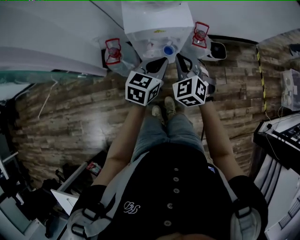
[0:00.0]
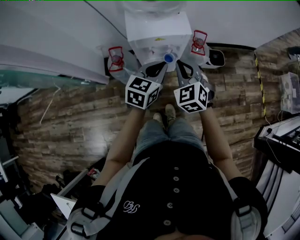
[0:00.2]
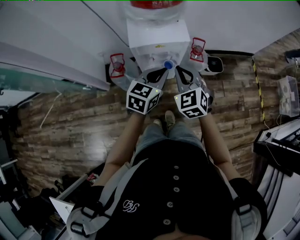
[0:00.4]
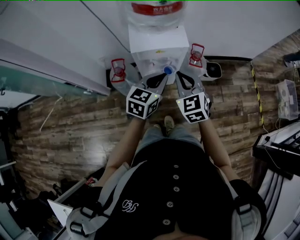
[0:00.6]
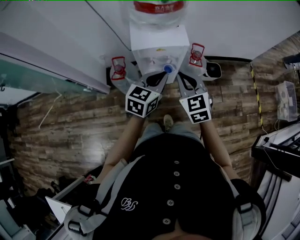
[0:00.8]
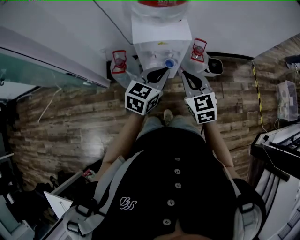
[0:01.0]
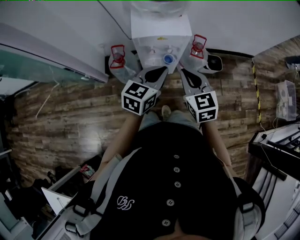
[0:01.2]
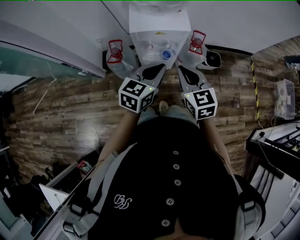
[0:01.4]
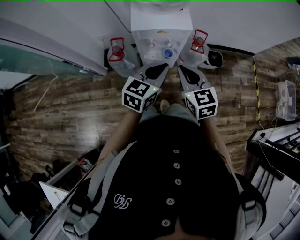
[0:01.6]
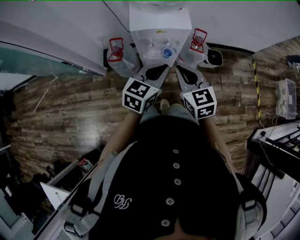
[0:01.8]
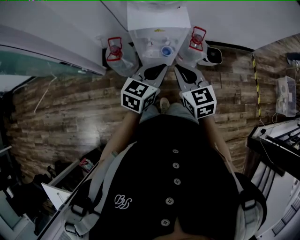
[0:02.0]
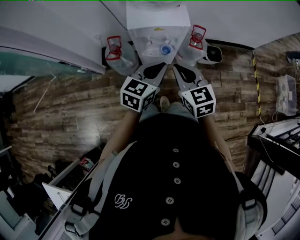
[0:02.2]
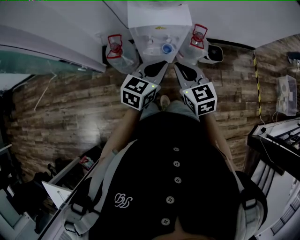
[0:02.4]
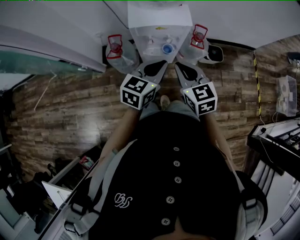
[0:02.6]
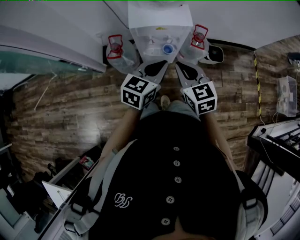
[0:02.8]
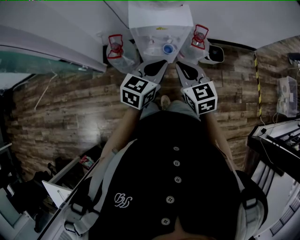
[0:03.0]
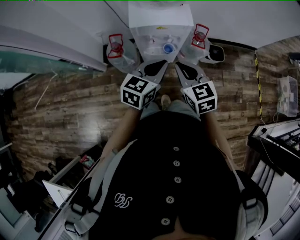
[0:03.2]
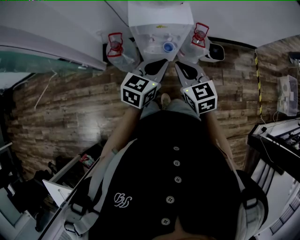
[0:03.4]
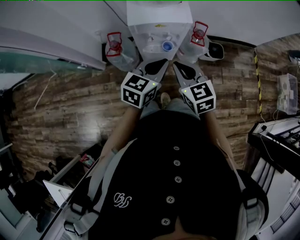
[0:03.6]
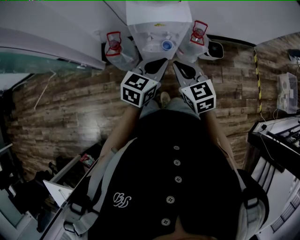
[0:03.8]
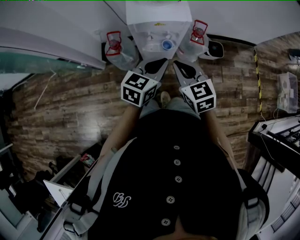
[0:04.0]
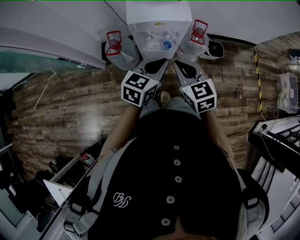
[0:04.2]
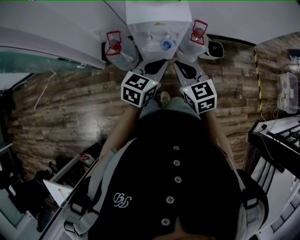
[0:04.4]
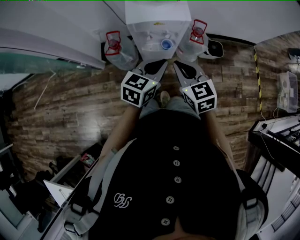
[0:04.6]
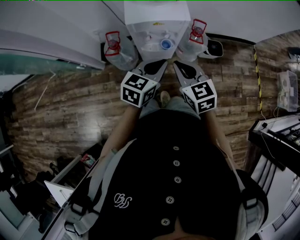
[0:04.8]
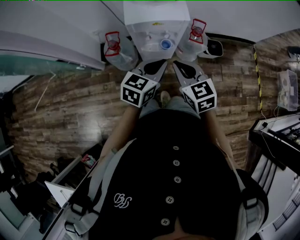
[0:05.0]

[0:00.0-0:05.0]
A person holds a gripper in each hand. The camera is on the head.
0:00.0 to 0:01.6: The left gripper travels upward and backward by about 10 cm. Meanwhile the right gripper moves backward and upward, approximately 10 cm, and swivels approximately 30 degrees.
0:01.6 to 0:05.0: The grippers stay close to where they were, moving slightly.

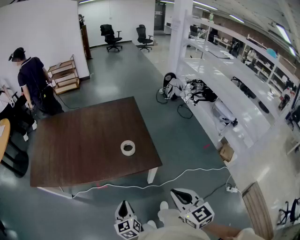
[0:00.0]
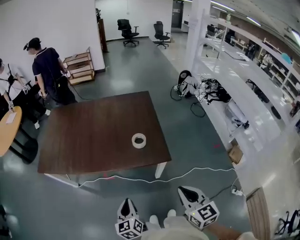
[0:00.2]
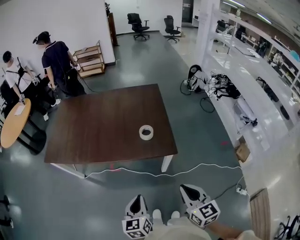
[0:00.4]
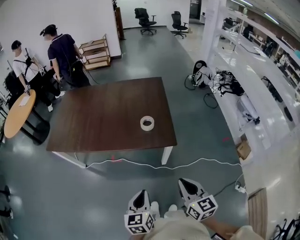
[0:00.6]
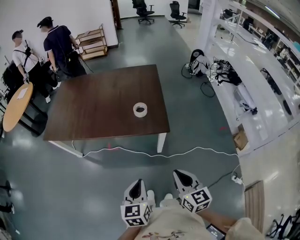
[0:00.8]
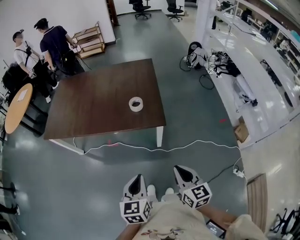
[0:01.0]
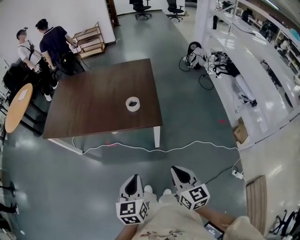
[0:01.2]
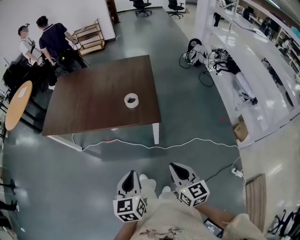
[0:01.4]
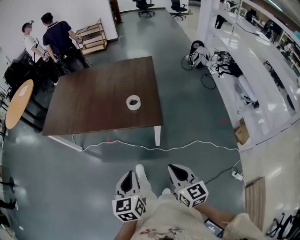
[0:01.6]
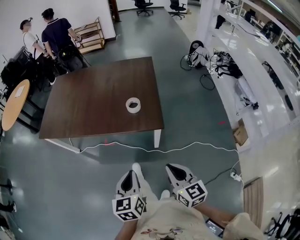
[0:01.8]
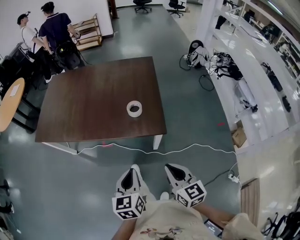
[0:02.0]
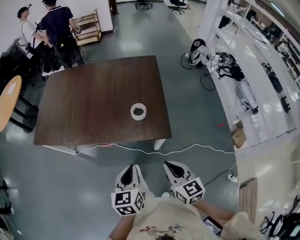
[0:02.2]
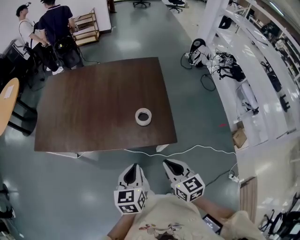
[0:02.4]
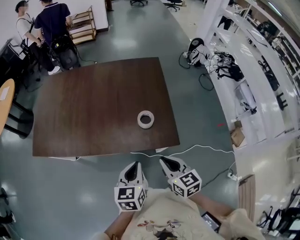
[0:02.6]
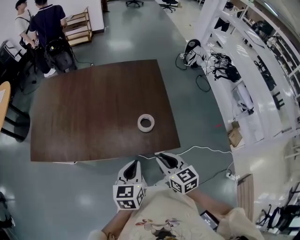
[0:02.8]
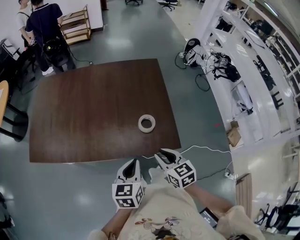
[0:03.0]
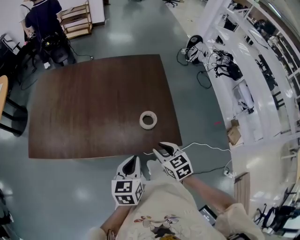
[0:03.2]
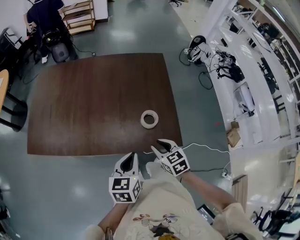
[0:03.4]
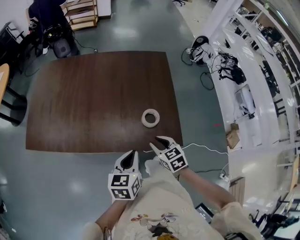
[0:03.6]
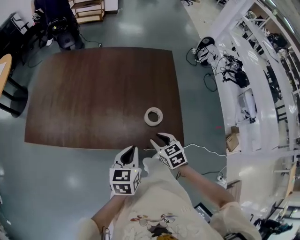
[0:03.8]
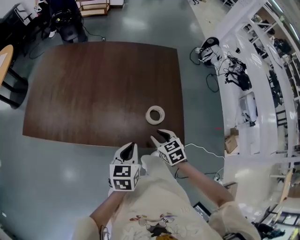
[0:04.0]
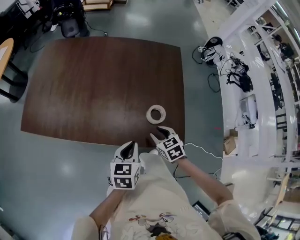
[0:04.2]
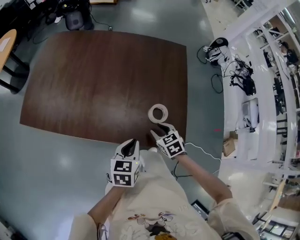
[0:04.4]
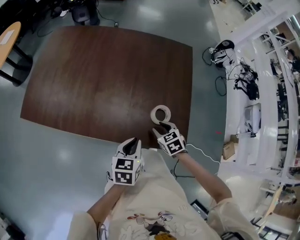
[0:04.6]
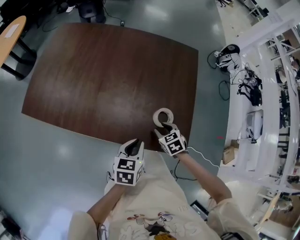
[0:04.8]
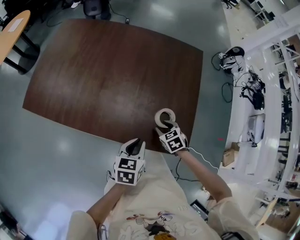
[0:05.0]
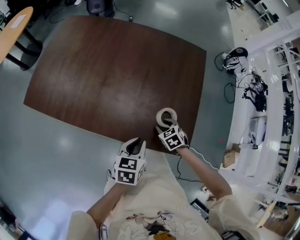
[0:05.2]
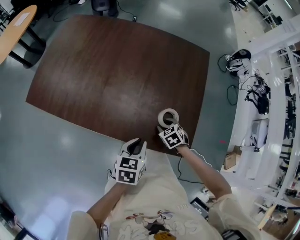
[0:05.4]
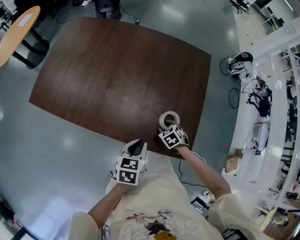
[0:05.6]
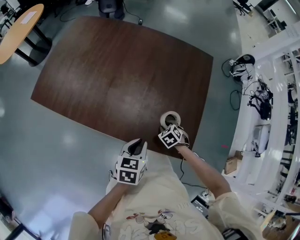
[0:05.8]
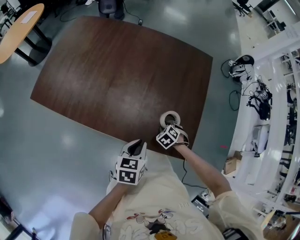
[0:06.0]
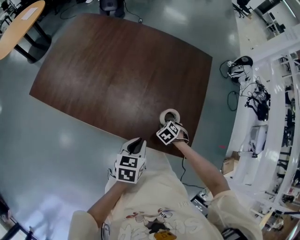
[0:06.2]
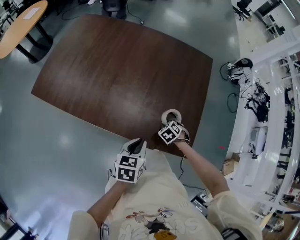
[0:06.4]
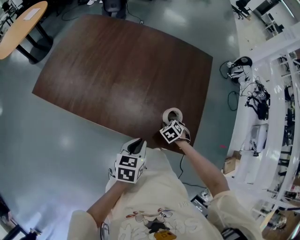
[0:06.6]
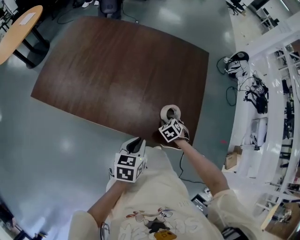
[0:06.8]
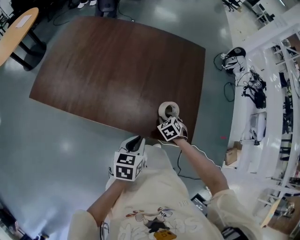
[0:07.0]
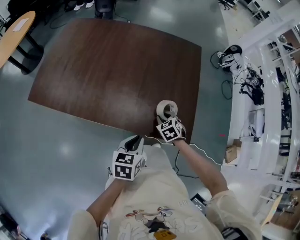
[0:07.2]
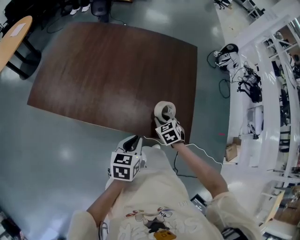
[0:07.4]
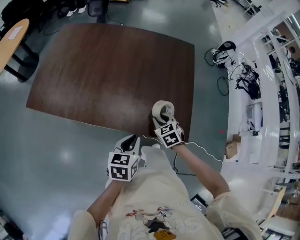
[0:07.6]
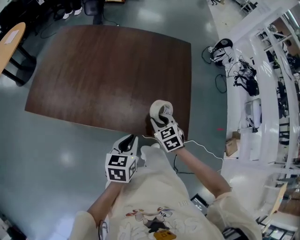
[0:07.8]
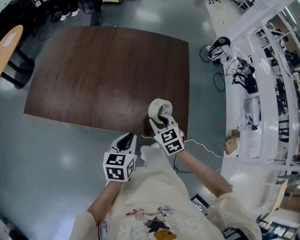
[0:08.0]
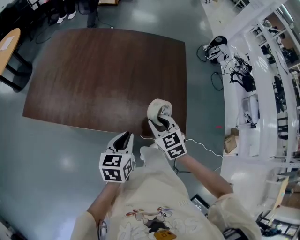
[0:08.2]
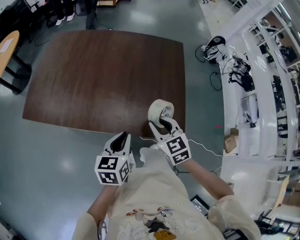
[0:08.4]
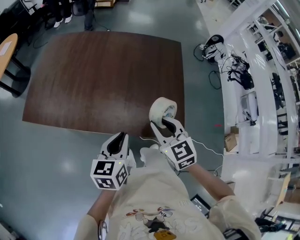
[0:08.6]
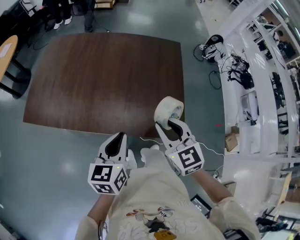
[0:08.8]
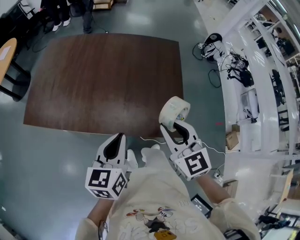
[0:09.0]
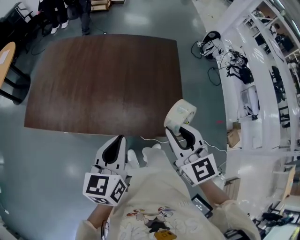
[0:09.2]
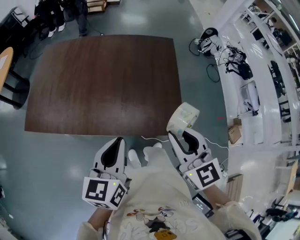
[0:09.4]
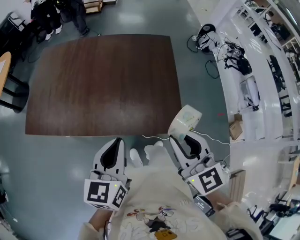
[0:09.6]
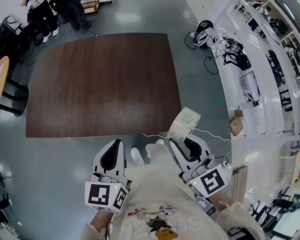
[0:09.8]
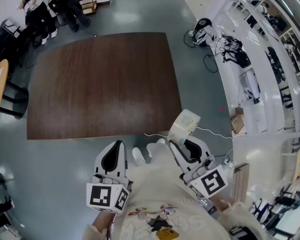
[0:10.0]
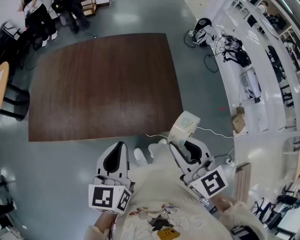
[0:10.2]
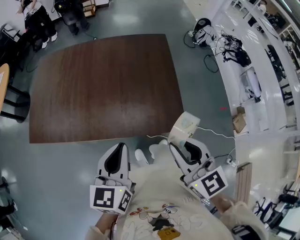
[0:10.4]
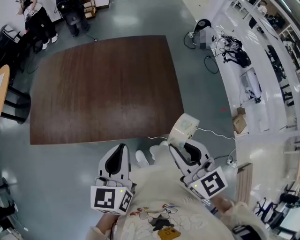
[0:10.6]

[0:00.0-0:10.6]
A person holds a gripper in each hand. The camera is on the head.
0:00.0 to 0:01.6: The left gripper shifts roughly 20 cm backward, to the right and upward. The right gripper heads backward and to the right, covering about 15 cm.
0:01.6 to 0:03.0: The left gripper goes some 40 cm forward, while the right gripper shifts approximately 40 cm forward and to the left.
0:03.0 to 0:04.6: The right gripper heads downward and forward, covering approximately 25 cm, and swivels roughly 30 degrees, while the left gripper is displaced downward and forward by approximately 15 cm.
0:04.6 to 0:06.0: The right gripper is displaced downward by about 10 cm, and turns by roughly 30 degrees.
0:06.0 to 0:07.6: The right gripper moves upward, about 10 cm, and changes its angle by roughly 30 degrees. Meanwhile the left gripper shifts by roughly 10 cm.
0:07.6 to 0:09.0: The left gripper is displaced upward by about 15 cm. The right gripper shifts roughly 25 cm upward, and tips its fingers upward by approximately 30 degrees.
0:09.0 to 0:10.6: The right gripper goes about 10 cm backward. Meanwhile the left gripper shifts by some 5 cm.

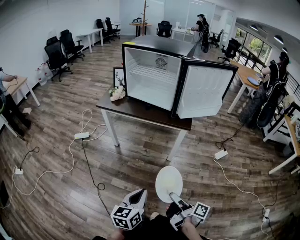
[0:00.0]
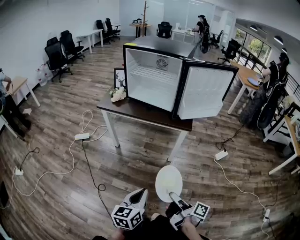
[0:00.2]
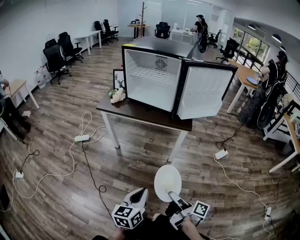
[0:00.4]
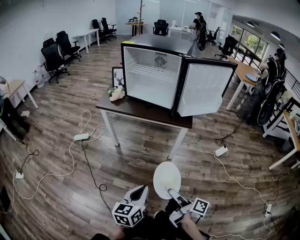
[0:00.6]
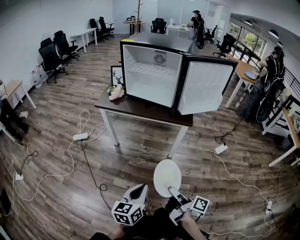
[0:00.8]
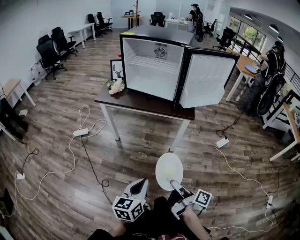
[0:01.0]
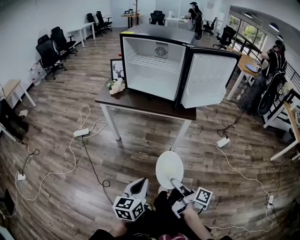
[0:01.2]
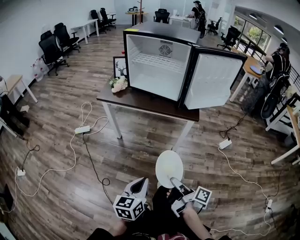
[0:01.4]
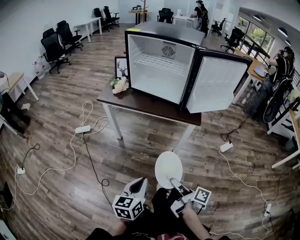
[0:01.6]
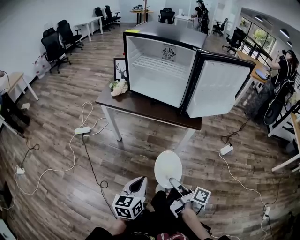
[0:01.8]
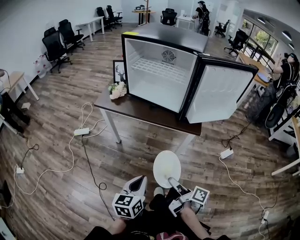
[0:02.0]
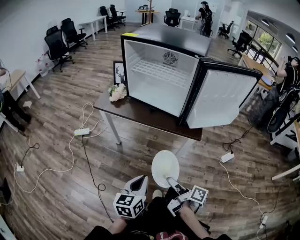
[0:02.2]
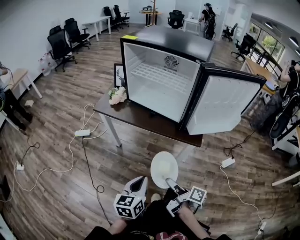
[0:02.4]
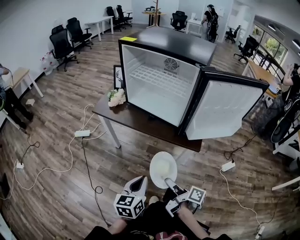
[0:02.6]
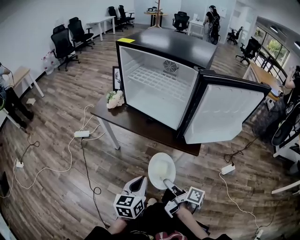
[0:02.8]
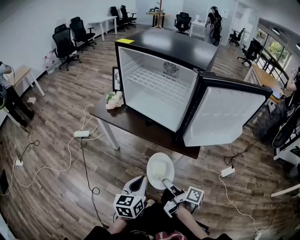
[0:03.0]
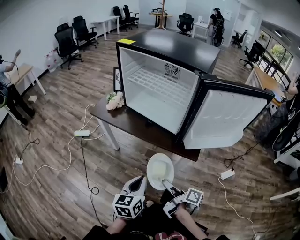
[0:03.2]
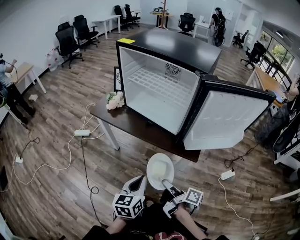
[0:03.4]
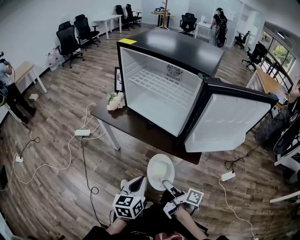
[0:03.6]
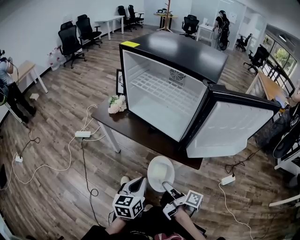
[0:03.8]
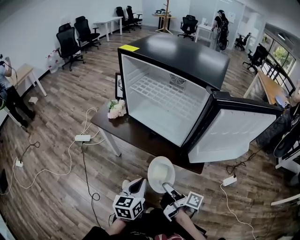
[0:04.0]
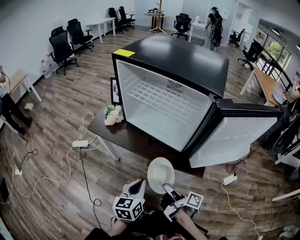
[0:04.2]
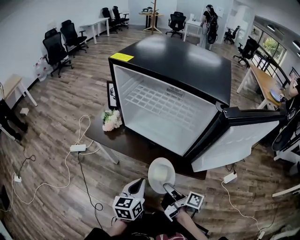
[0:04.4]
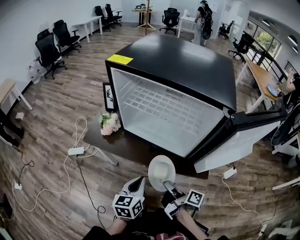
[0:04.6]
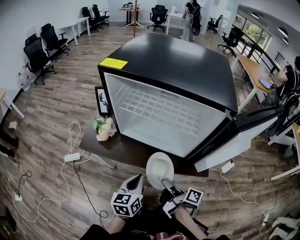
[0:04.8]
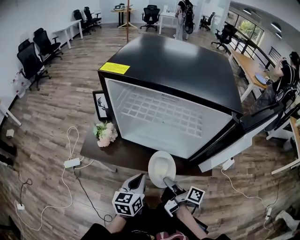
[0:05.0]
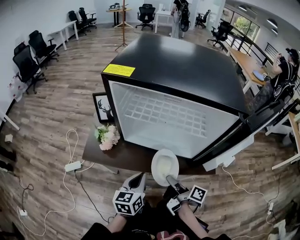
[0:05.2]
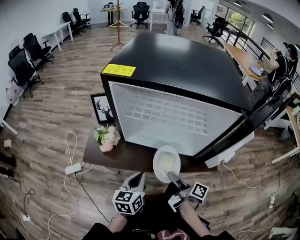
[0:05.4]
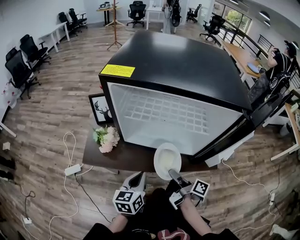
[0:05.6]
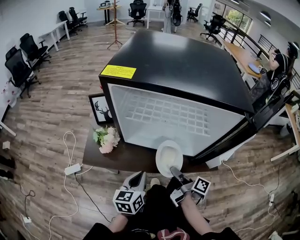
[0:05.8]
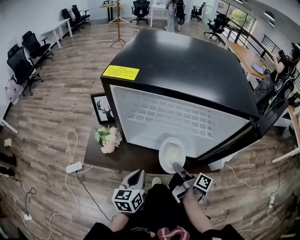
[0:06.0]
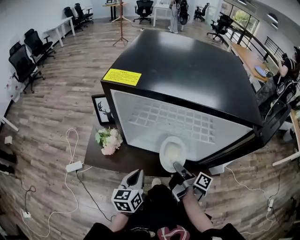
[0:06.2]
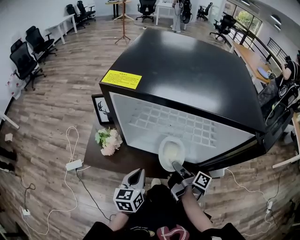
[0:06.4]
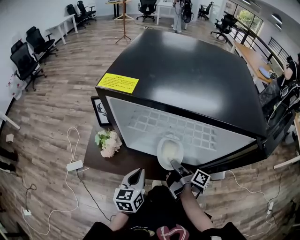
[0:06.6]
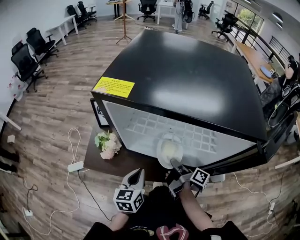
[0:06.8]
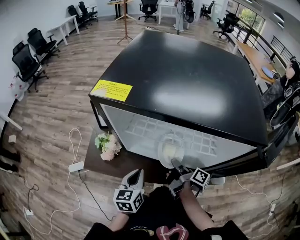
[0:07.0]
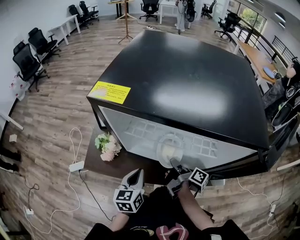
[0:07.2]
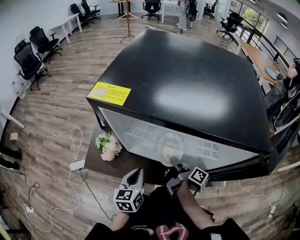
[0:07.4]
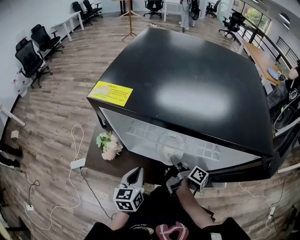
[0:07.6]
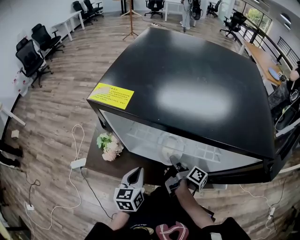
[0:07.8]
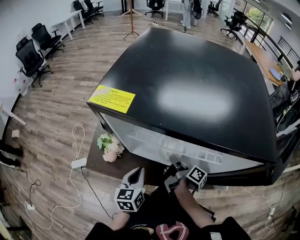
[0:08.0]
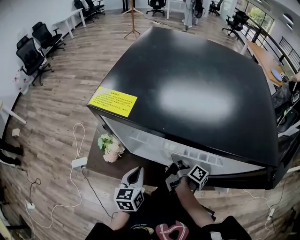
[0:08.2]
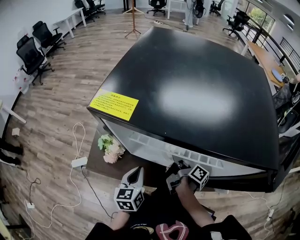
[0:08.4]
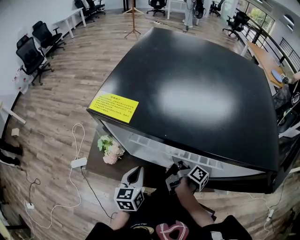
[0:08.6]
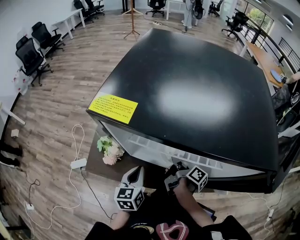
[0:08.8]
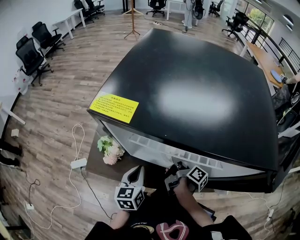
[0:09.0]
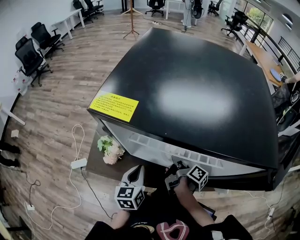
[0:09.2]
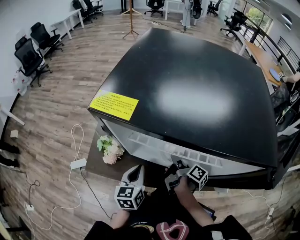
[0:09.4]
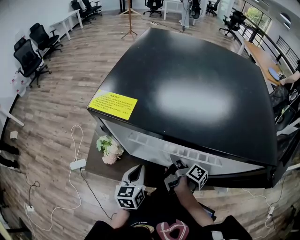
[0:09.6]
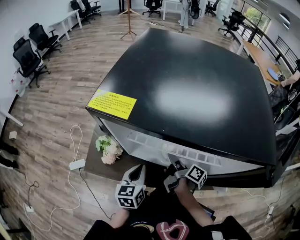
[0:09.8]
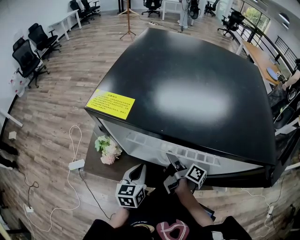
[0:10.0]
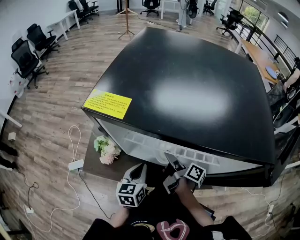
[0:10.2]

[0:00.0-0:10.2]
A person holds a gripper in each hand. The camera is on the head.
0:00.0 to 0:01.4: The left gripper shifts by about 5 cm.
0:01.4 to 0:03.0: The left gripper ends up approximately 25 cm from where it was.
0:03.0 to 0:04.4: The left gripper shifts by some 15 cm.
0:04.4 to 0:05.8: The left gripper changes place by approximately 15 cm.
0:05.8 to 0:07.2: The left gripper changes place by roughly 10 cm.
